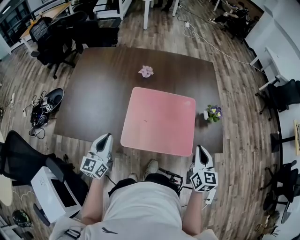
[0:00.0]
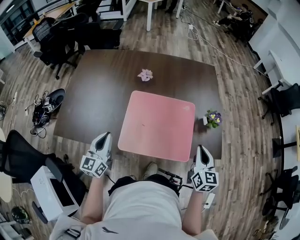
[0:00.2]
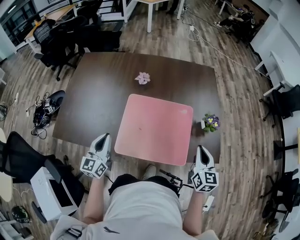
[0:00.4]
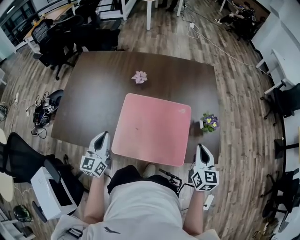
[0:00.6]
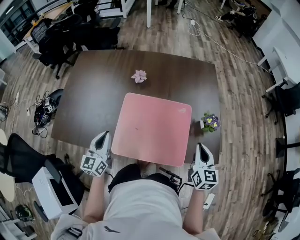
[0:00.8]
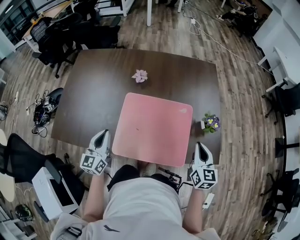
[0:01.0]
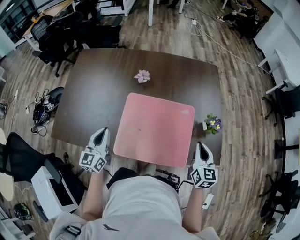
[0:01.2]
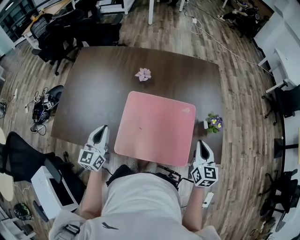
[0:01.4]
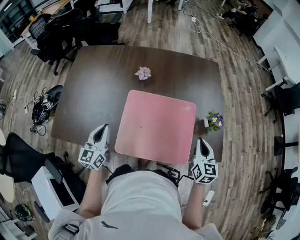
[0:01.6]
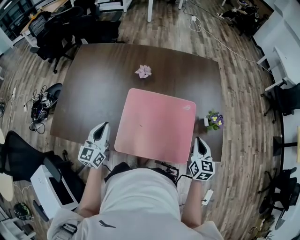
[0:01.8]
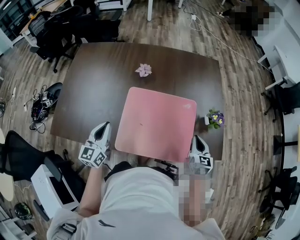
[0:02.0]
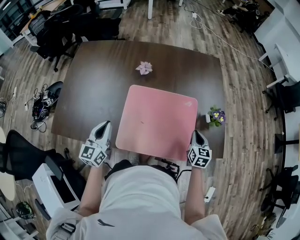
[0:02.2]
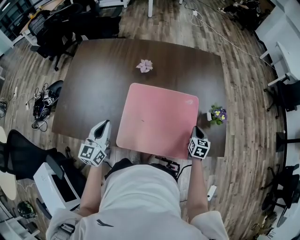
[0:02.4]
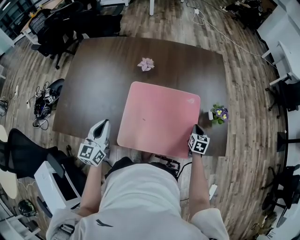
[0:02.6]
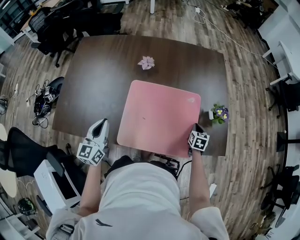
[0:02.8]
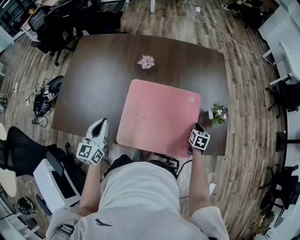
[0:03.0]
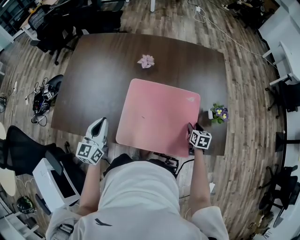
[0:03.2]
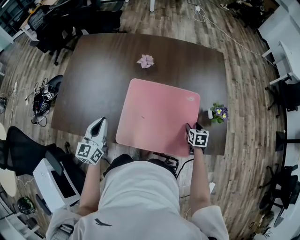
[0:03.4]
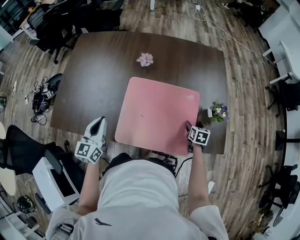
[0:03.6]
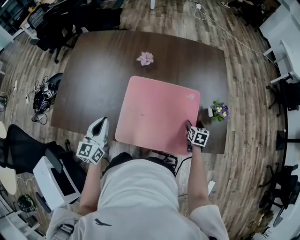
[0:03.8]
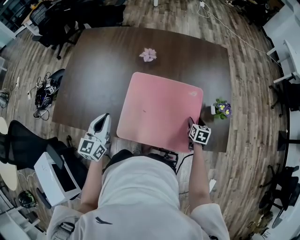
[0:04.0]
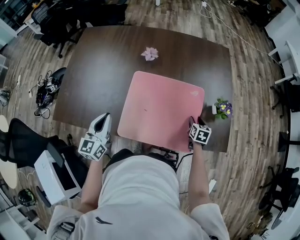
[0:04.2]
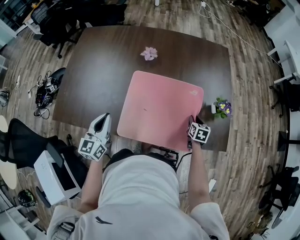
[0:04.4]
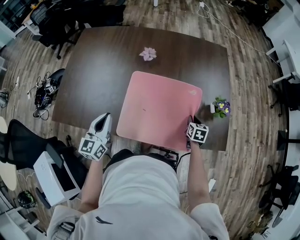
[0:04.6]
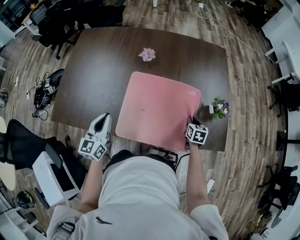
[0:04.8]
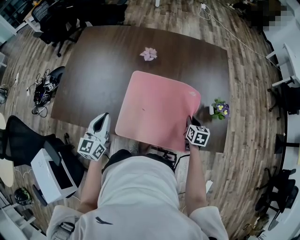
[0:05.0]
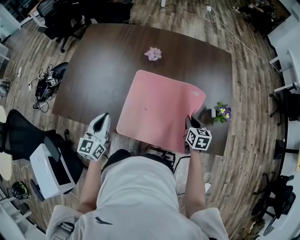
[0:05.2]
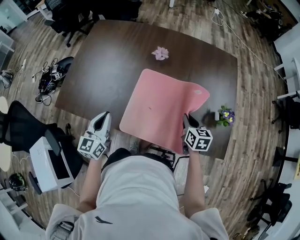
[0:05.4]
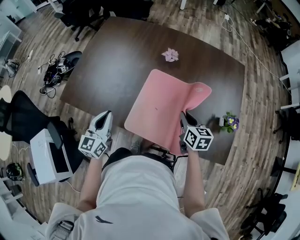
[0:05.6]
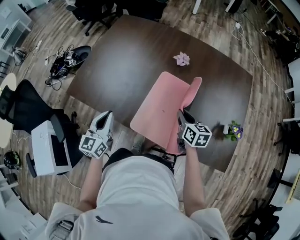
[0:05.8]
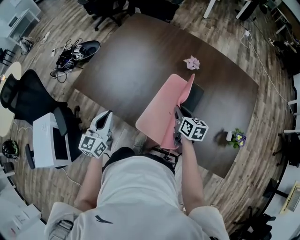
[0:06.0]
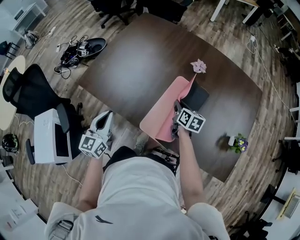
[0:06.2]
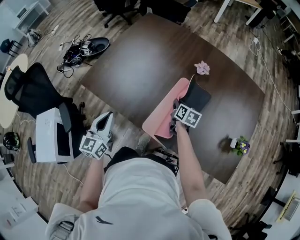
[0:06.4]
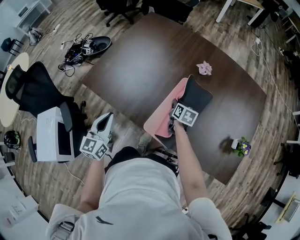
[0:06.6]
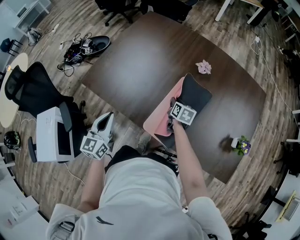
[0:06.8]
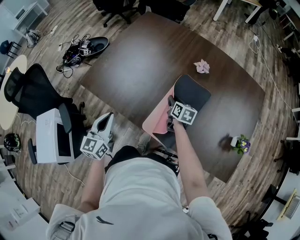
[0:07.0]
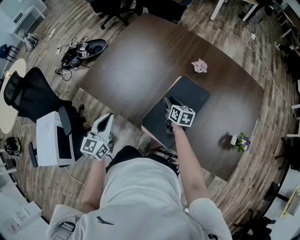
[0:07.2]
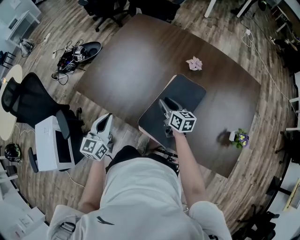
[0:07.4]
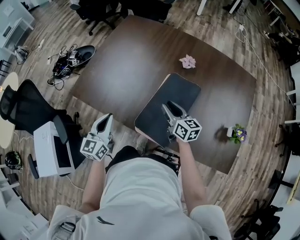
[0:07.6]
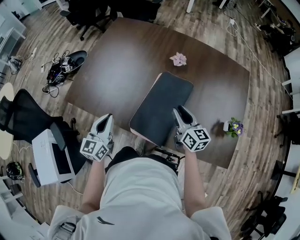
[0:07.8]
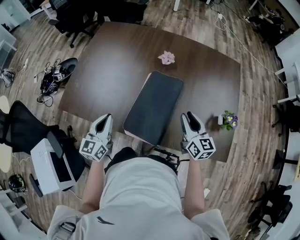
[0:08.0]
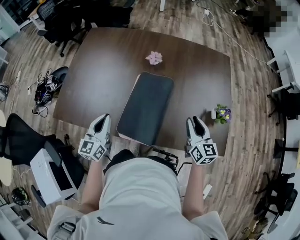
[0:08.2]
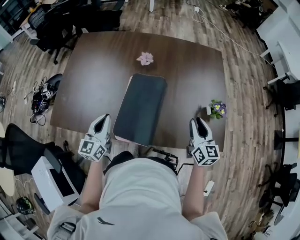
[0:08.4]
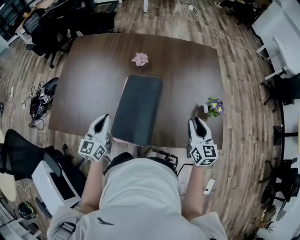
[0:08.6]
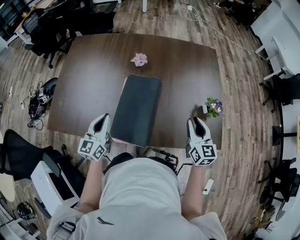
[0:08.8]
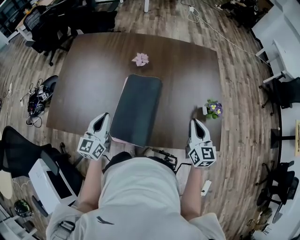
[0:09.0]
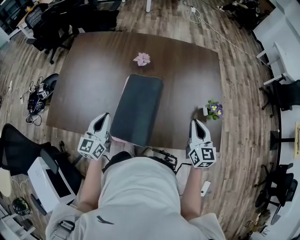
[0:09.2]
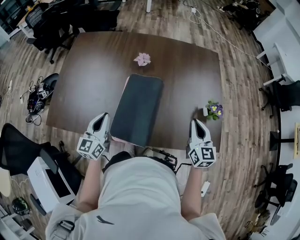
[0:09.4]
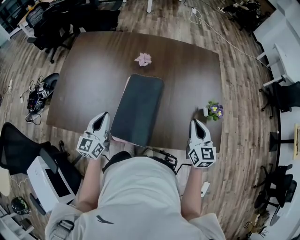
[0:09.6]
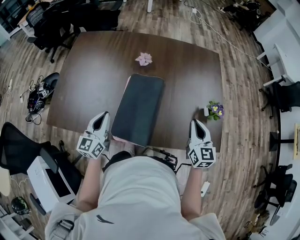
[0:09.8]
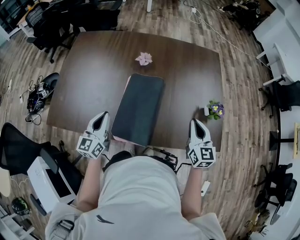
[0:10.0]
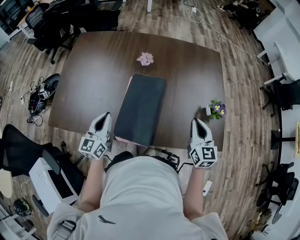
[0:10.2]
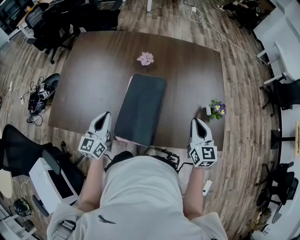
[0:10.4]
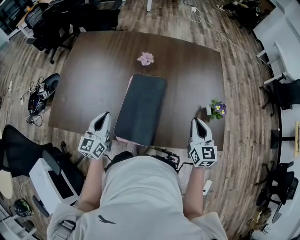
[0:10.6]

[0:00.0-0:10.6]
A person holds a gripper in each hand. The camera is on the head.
0:00.0 to 0:01.6: Both grippers move forward, approximately 10 cm.
0:01.6 to 0:03.0: The right gripper heads downward, covering roughly 20 cm, and changes its angle by approximately 30 degrees.
0:03.0 to 0:04.6: The right gripper opens, then closes again.
0:04.6 to 0:06.0: The right gripper changes place by roughly 30 cm, and changes its angle by roughly 40 degrees. The left gripper moves approximately 15 cm.
0:06.0 to 0:07.6: The right gripper heads to the left, covering approximately 5 cm, and travels downward and back again, some 10 cm each way.
0:07.6 to 0:09.0: The left gripper changes place by roughly 15 cm. The right gripper shifts by some 30 cm, changes its angle by approximately 40 degrees, and closes.
0:09.0 to 0:10.6: The grippers make only small movements.

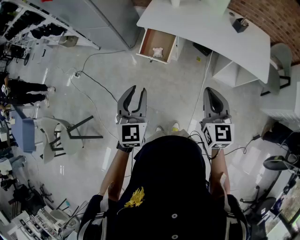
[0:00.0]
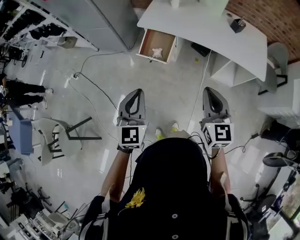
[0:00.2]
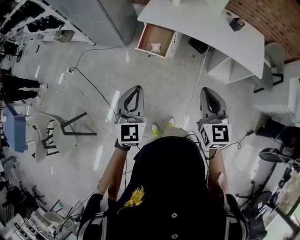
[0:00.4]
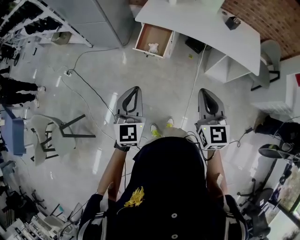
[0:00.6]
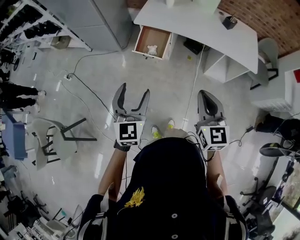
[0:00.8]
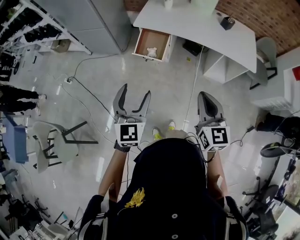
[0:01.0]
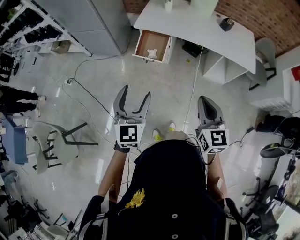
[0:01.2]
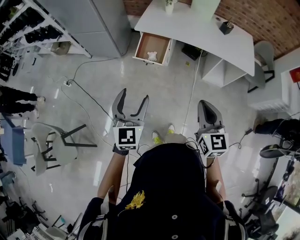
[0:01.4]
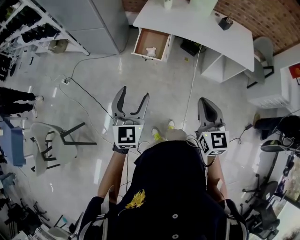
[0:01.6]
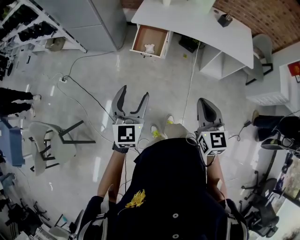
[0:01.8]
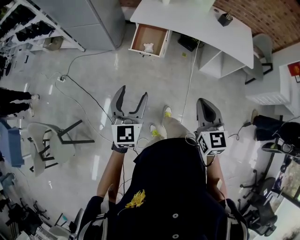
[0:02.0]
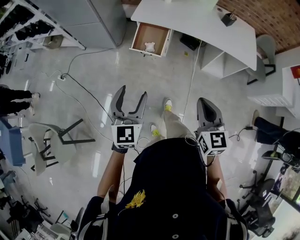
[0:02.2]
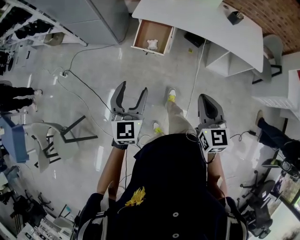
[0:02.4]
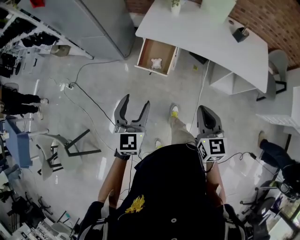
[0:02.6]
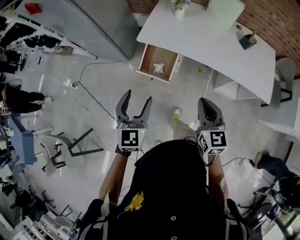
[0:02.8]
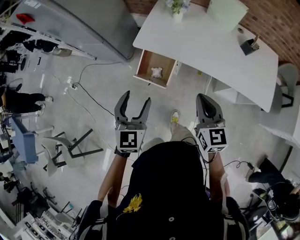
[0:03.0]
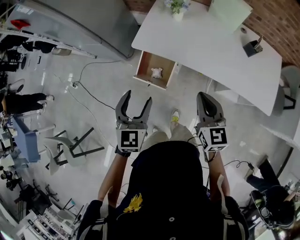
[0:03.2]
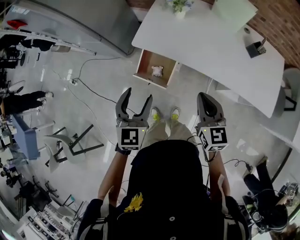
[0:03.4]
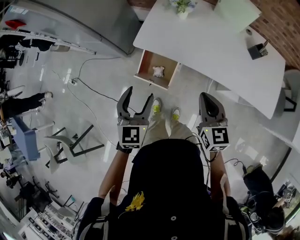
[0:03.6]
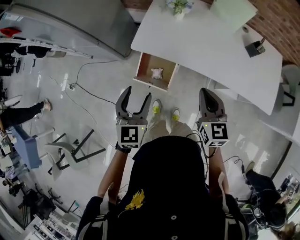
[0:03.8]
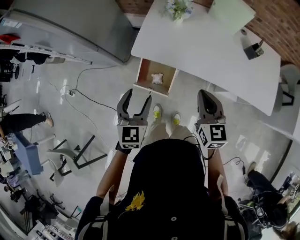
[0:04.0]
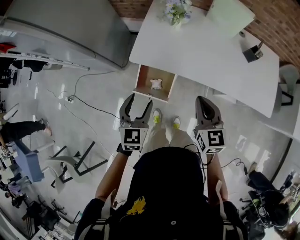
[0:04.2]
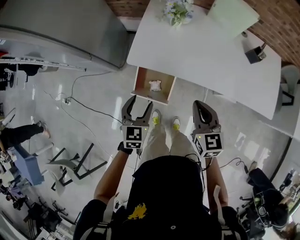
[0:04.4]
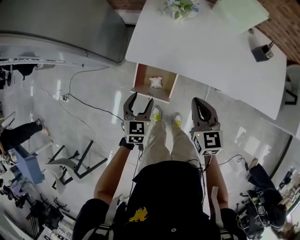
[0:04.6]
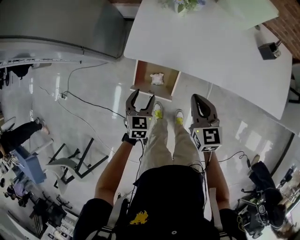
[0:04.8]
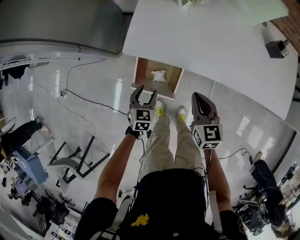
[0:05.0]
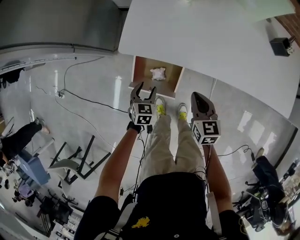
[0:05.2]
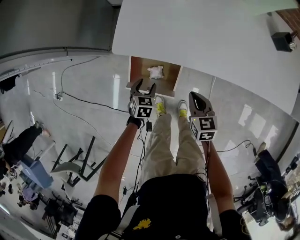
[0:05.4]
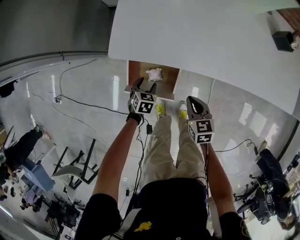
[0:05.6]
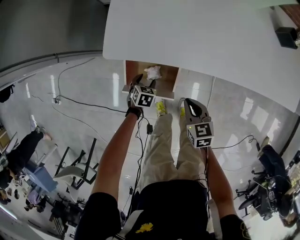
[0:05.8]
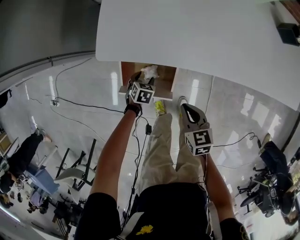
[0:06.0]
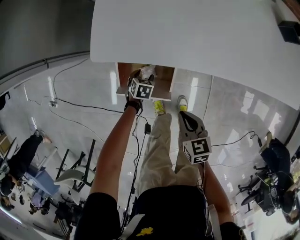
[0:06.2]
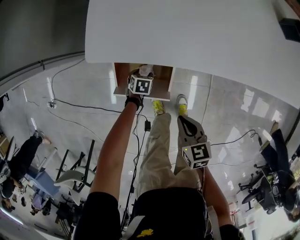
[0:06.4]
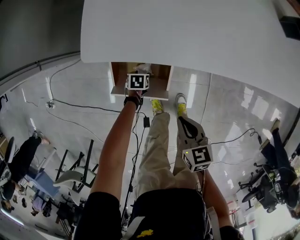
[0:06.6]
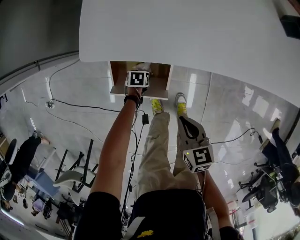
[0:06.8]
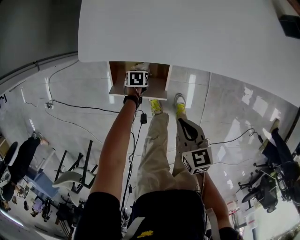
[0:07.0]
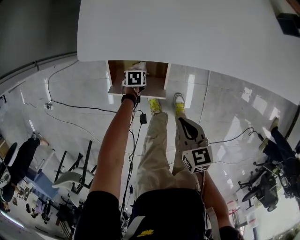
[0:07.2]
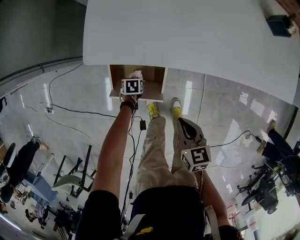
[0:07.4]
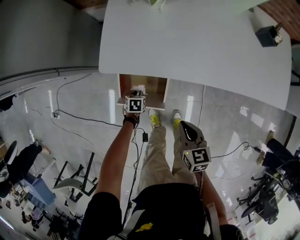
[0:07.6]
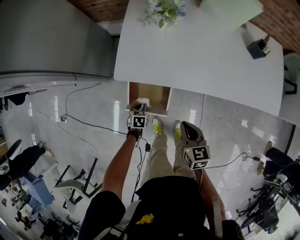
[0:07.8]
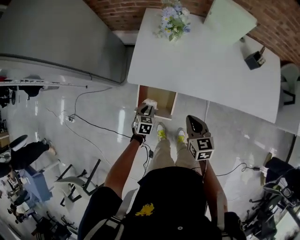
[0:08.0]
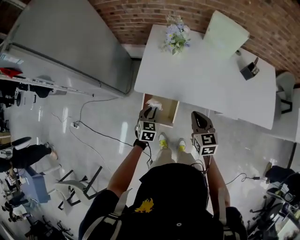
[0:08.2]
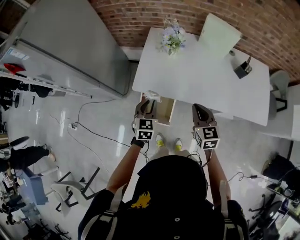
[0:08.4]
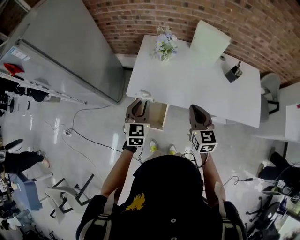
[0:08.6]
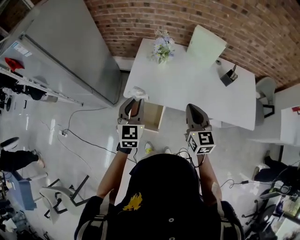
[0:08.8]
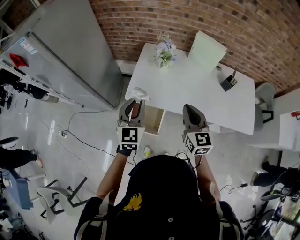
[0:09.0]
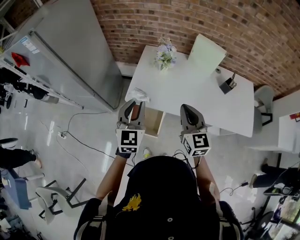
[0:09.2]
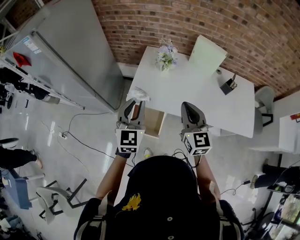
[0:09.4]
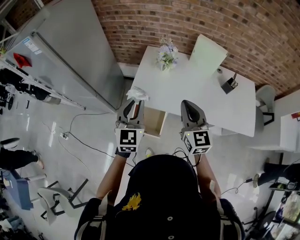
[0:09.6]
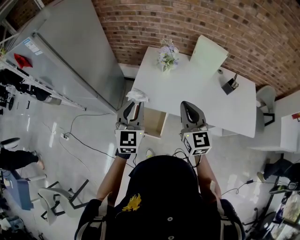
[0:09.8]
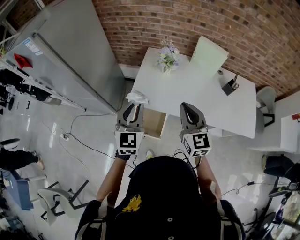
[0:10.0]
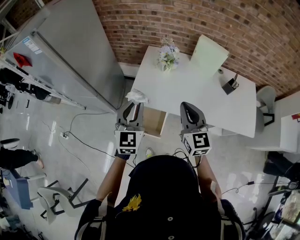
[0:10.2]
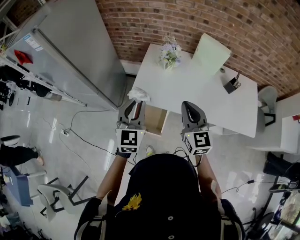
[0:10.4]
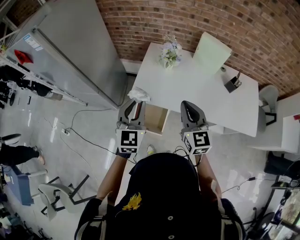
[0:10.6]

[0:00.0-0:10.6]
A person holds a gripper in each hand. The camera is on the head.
0:00.0 to 0:01.6: Both grippers travel together backward and to the left, approximately 15 cm. The left gripper opens.
0:01.6 to 0:03.0: The grippers both shift forward by some 40 cm.
0:03.0 to 0:04.6: The left gripper goes about 30 cm downward and forward, and turns by some 20 degrees. The right gripper is displaced forward and downward by some 20 cm.
0:04.6 to 0:06.0: The two grippers go roughly 35 cm downward. The left gripper points its fingers approximately 30 degrees further downward. The right gripper rotates roughly 20 degrees.
0:06.0 to 0:07.6: The right gripper is displaced upward by roughly 10 cm; the left gripper goes downward and returns, some 10 cm each way, and closes up.
0:07.6 to 0:09.0: The right gripper moves upward, approximately 40 cm, and turns by roughly 40 degrees. Meanwhile the left gripper goes about 70 cm upward, and points its fingers approximately 60 degrees further upward.
0:09.0 to 0:10.6: The right gripper ends up roughly 5 cm from where it was.

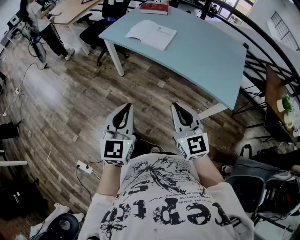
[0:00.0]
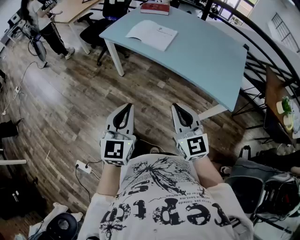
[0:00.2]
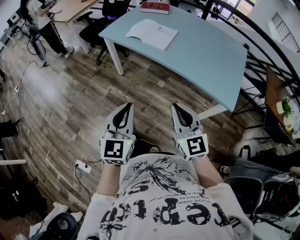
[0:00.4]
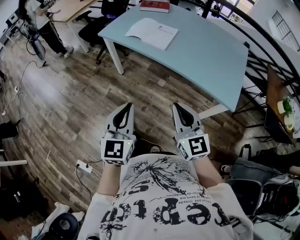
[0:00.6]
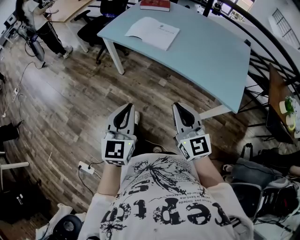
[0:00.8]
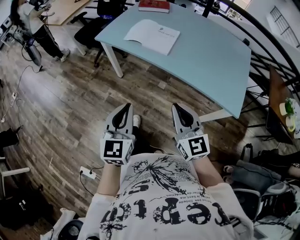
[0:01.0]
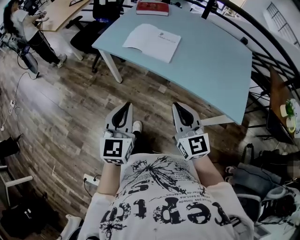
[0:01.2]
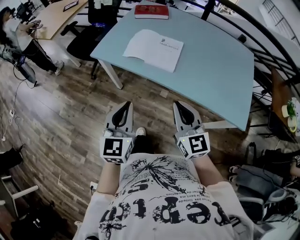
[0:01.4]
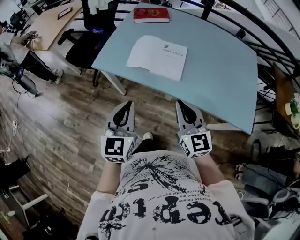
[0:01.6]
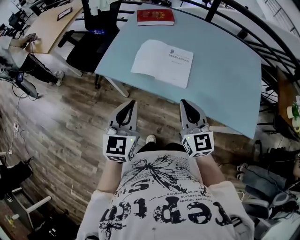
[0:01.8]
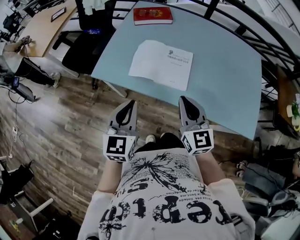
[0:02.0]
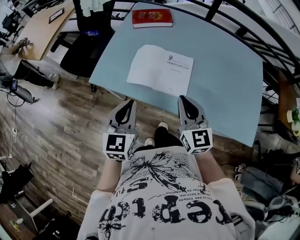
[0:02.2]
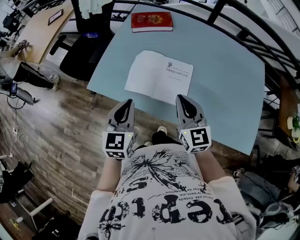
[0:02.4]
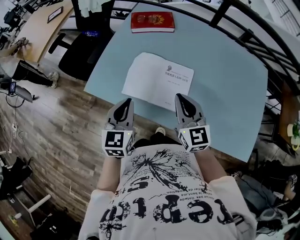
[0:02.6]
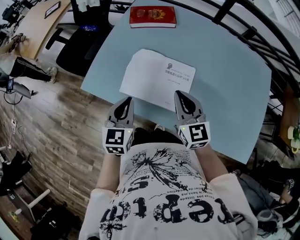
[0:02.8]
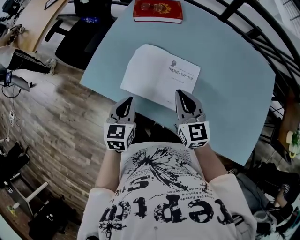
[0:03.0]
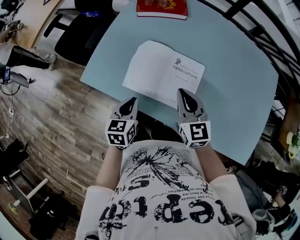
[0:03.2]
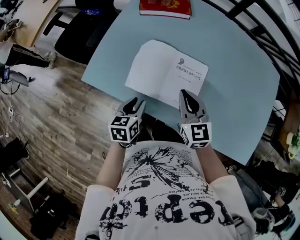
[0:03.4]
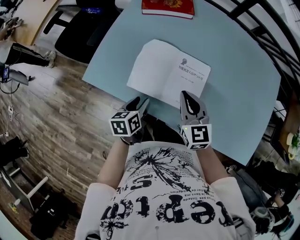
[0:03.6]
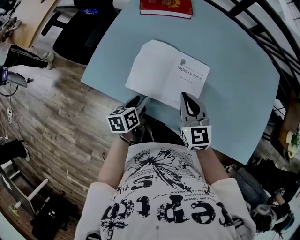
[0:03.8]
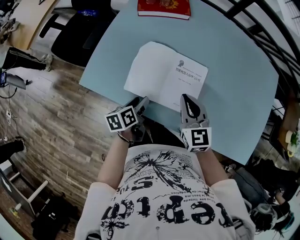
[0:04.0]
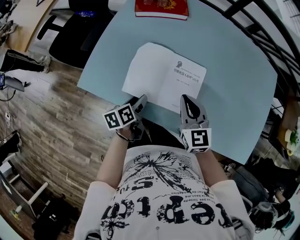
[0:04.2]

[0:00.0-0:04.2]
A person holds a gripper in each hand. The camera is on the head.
0:00.0 to 0:01.4: The two grippers go some 25 cm forward.
0:01.4 to 0:02.8: Both grippers travel together forward, roughly 35 cm.
0:02.8 to 0:04.2: The left gripper travels downward by some 15 cm, rolls counterclockwise, seen from behind, by approximately 50 degrees, and opens, while the right gripper heads downward, covering some 5 cm.
